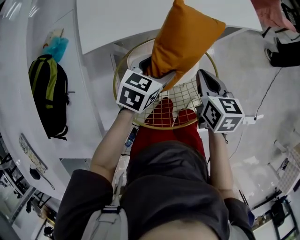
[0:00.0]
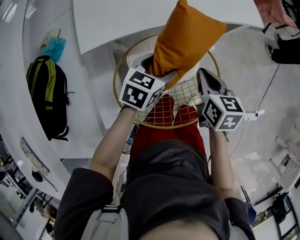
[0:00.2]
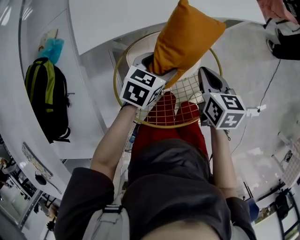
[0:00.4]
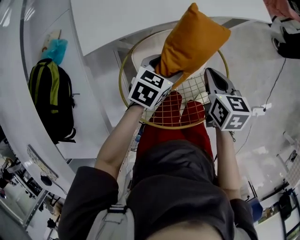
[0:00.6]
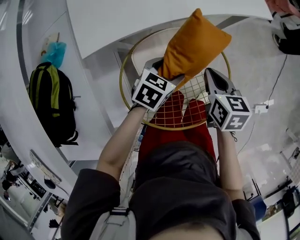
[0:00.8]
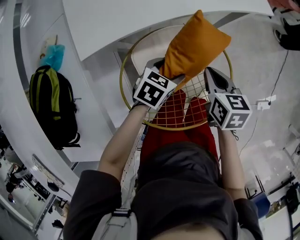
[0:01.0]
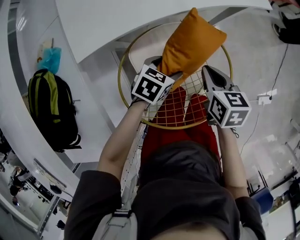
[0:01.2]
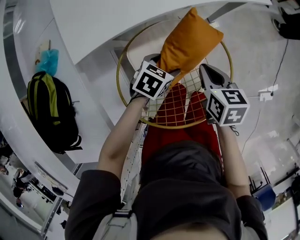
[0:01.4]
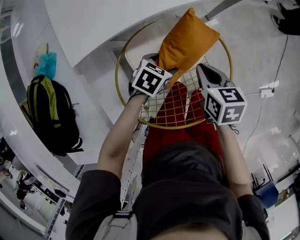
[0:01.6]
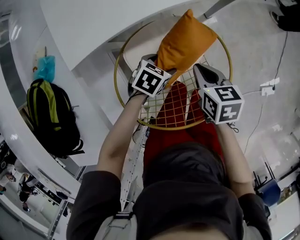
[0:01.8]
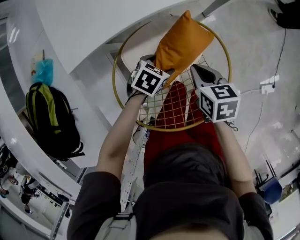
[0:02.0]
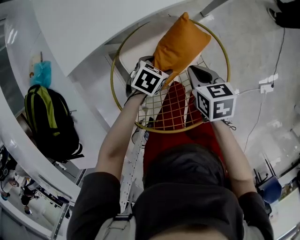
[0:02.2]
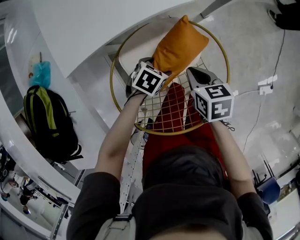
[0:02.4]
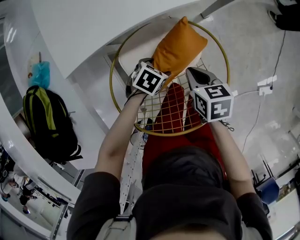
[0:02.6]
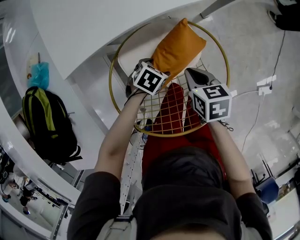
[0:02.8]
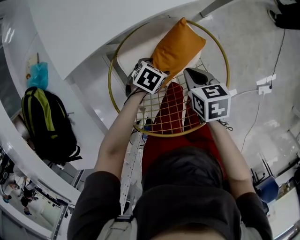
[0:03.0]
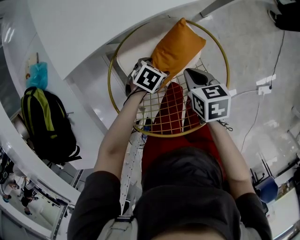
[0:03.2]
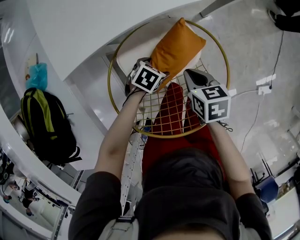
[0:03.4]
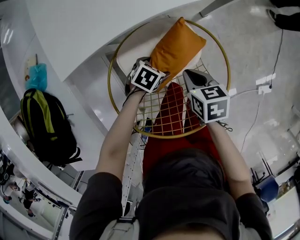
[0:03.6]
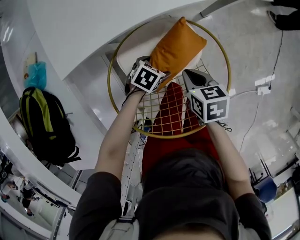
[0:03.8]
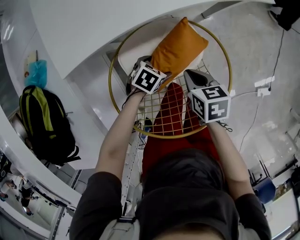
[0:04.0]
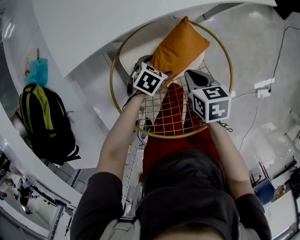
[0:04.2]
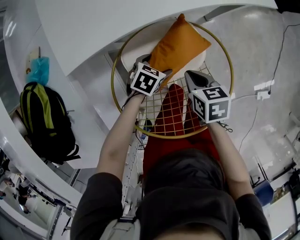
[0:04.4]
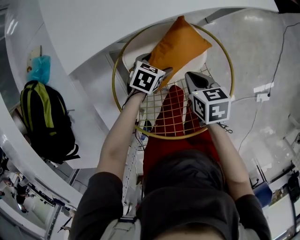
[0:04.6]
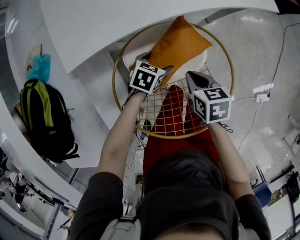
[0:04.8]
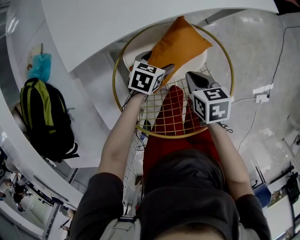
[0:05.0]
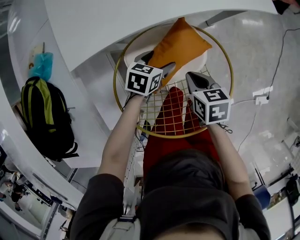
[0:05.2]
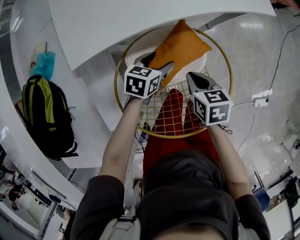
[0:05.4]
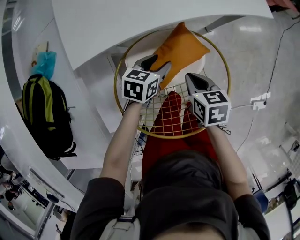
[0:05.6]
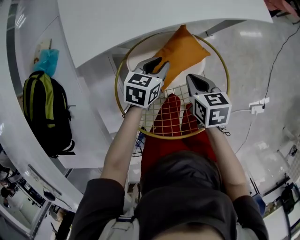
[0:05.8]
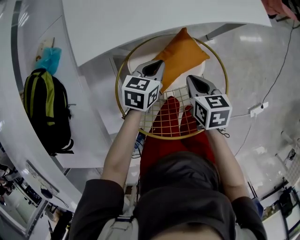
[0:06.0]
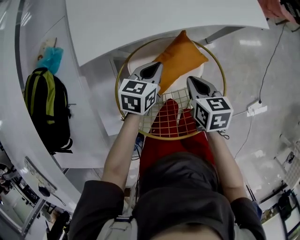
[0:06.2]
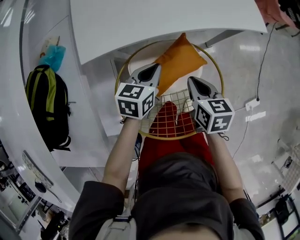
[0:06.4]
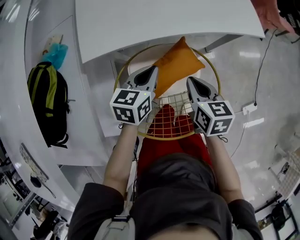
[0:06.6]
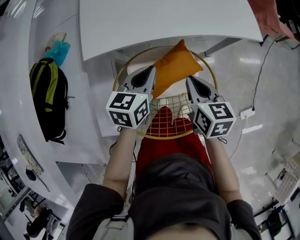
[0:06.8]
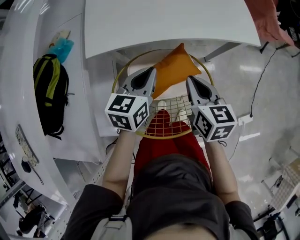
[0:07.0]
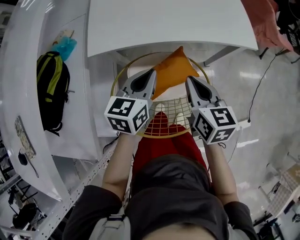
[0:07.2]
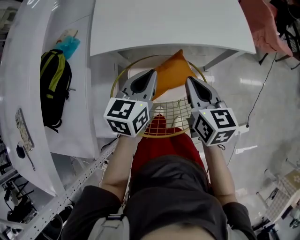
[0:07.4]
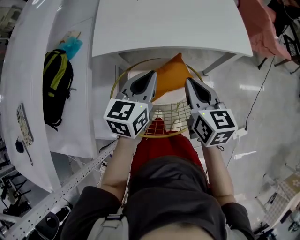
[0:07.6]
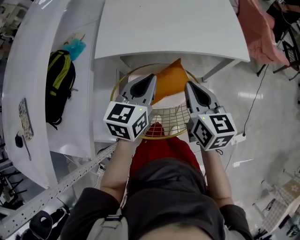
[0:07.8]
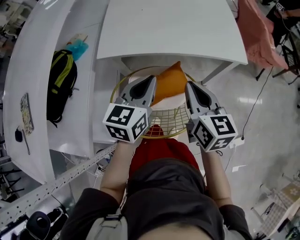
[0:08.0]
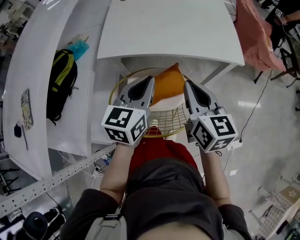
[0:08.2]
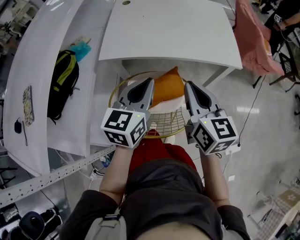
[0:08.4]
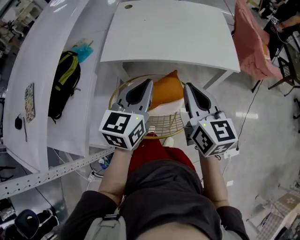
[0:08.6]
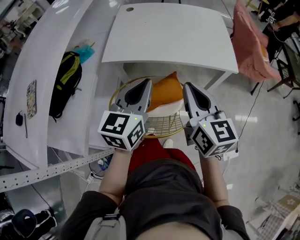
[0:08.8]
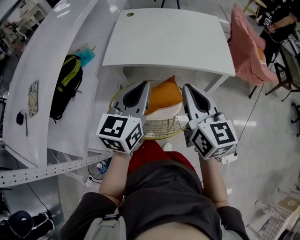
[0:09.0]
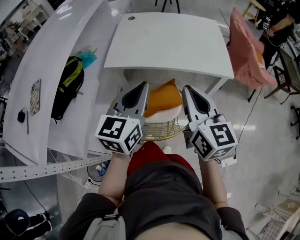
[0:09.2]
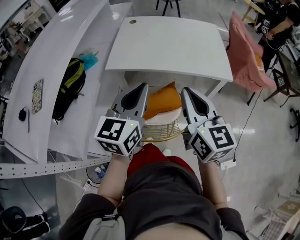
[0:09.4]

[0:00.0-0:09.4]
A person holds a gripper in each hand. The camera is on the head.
0:00.0 to 0:01.6: The left gripper travels downward by approximately 15 cm, and changes its angle by some 30 degrees. The right gripper shifts some 10 cm downward.
0:01.6 to 0:03.2: Both grippers move downward, about 5 cm.
0:03.2 to 0:04.8: The left gripper shifts by about 5 cm.
0:04.8 to 0:06.2: The left gripper travels upward by about 15 cm, changes its angle by roughly 30 degrees, and closes up; the right gripper travels upward by approximately 5 cm.
0:06.2 to 0:07.8: The two grippers go roughly 20 cm upward. The left gripper rotates approximately 30 degrees. The right gripper swivels roughly 30 degrees.
0:07.8 to 0:09.4: The two grippers go roughly 15 cm upward and backward. The right gripper rotates roughly 20 degrees.

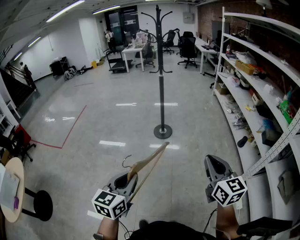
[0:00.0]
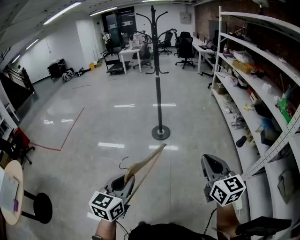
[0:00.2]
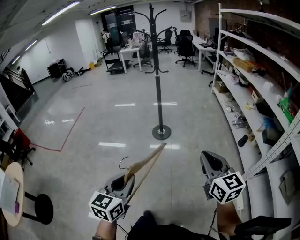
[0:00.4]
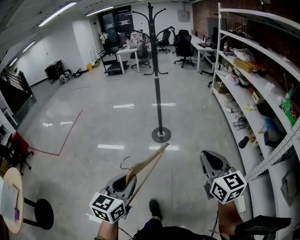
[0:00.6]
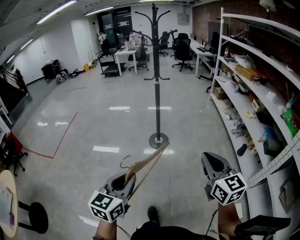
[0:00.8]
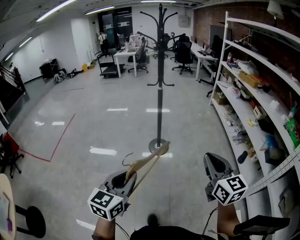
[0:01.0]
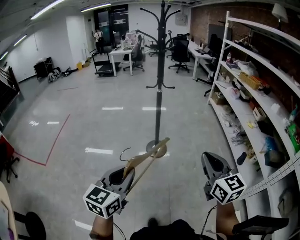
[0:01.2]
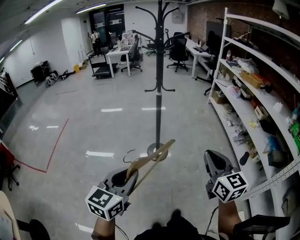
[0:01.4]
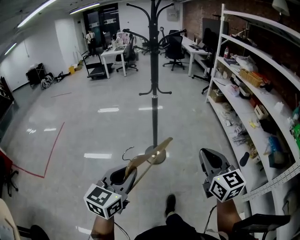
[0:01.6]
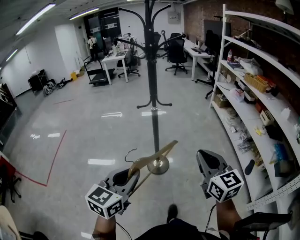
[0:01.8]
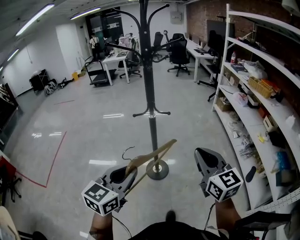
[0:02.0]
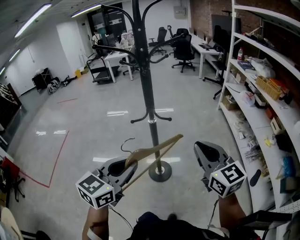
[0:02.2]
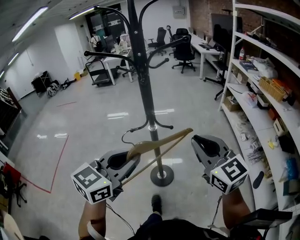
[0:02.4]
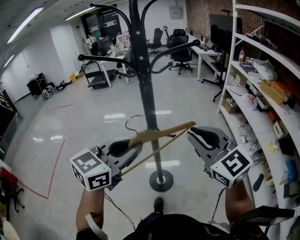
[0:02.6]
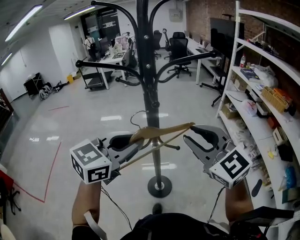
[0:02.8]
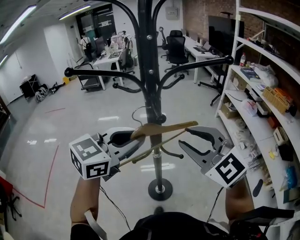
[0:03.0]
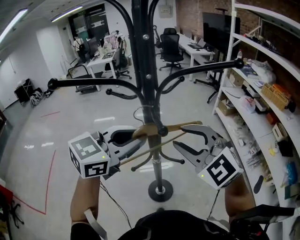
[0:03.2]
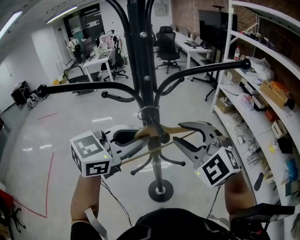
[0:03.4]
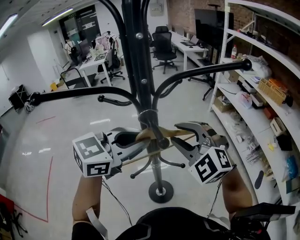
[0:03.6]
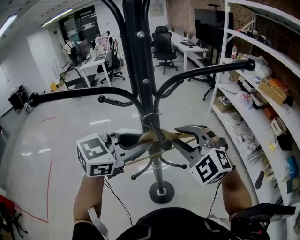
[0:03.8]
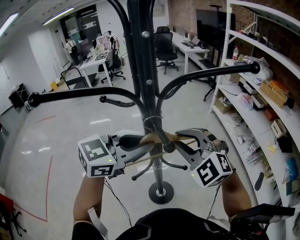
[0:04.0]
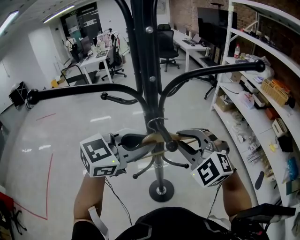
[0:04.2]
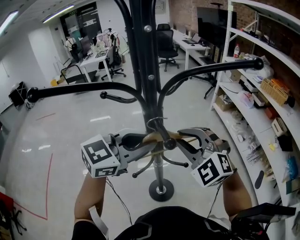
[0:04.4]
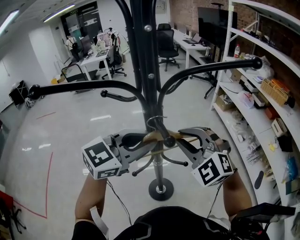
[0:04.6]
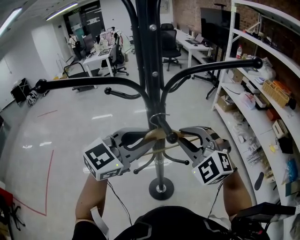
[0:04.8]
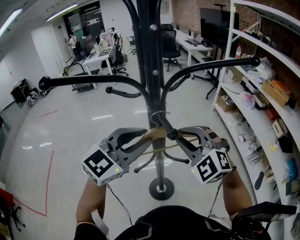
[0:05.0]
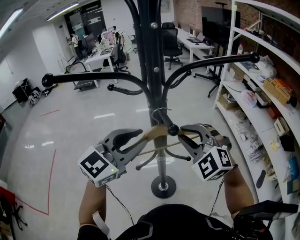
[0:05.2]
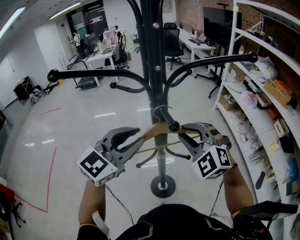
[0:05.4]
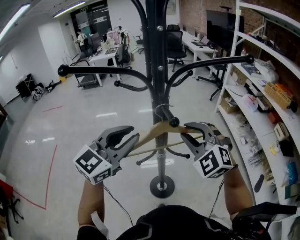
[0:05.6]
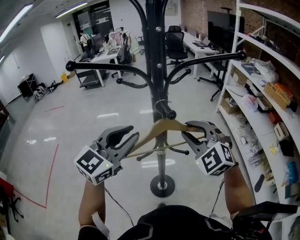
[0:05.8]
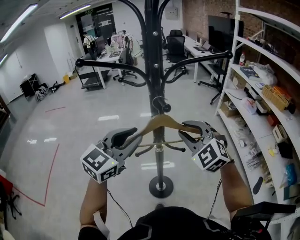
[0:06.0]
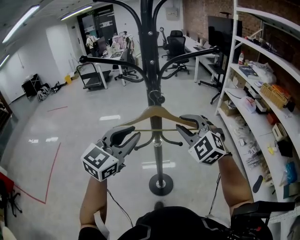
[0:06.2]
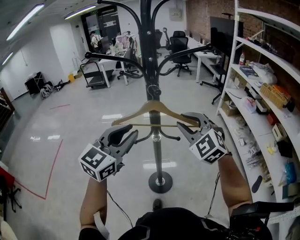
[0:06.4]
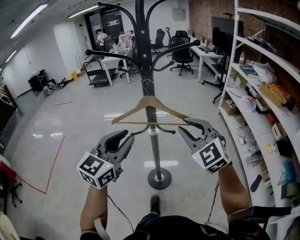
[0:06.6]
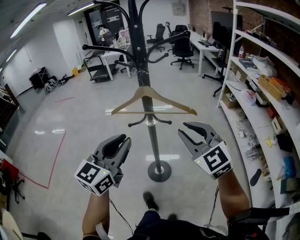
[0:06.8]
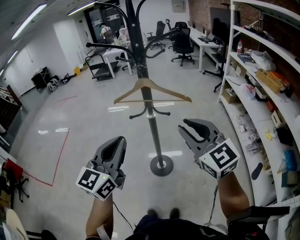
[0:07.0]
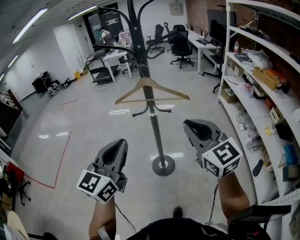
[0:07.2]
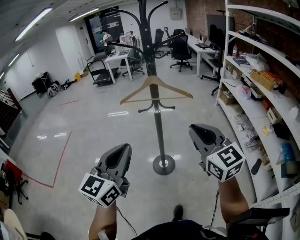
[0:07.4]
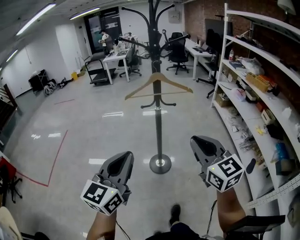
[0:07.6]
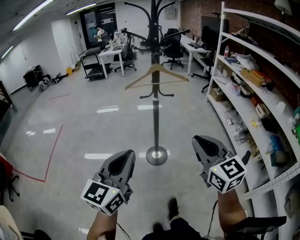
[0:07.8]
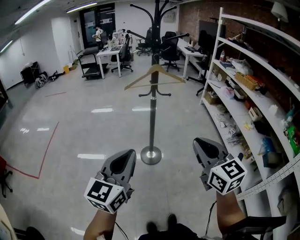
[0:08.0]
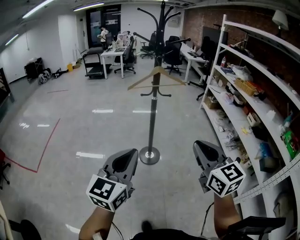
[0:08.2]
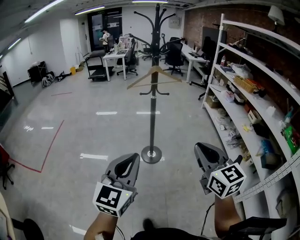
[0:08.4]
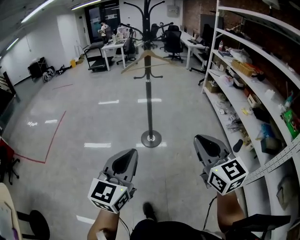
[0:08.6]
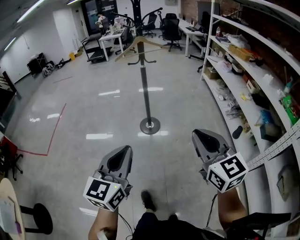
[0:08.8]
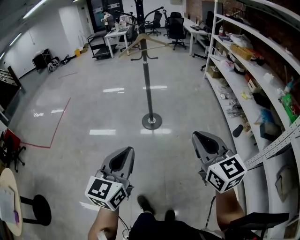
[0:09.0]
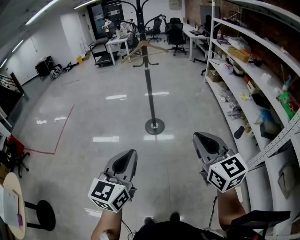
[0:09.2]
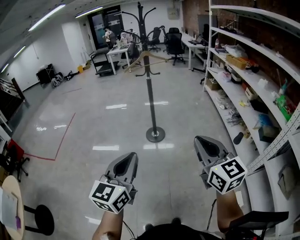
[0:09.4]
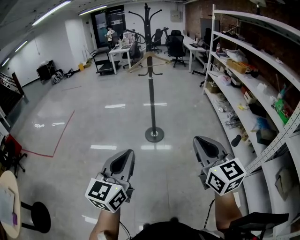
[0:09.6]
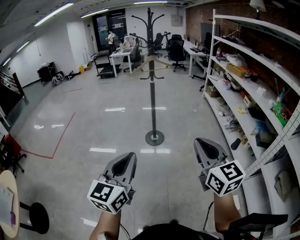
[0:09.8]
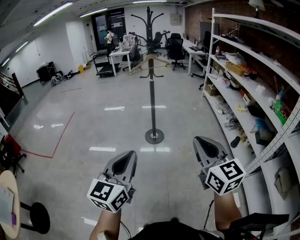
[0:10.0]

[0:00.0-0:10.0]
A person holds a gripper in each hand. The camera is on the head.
0:00.0 to 0:01.4: Both grippers travel together forward, some 35 cm.
0:01.4 to 0:02.8: The two grippers travel together, forward, approximately 50 cm. The right gripper changes its angle by approximately 30 degrees, and opens; the left gripper swivels approximately 20 degrees.
0:02.8 to 0:04.2: The right gripper goes about 15 cm forward, downward and to the left, and swivels roughly 30 degrees. Meanwhile the left gripper shifts roughly 10 cm forward, and swivels some 20 degrees.
0:04.2 to 0:05.8: The left gripper shifts some 10 cm to the left and backward, and changes its angle by about 30 degrees.
0:05.8 to 0:07.2: Both grippers move backward, some 25 cm. The left gripper changes its angle by approximately 30 degrees, and closes. The right gripper swivels approximately 40 degrees.
0:07.2 to 0:08.6: Both grippers move backward, roughly 35 cm.
0:08.6 to 0:10.0: Both grippers move backward, about 20 cm.

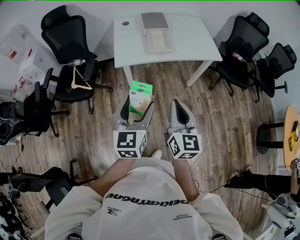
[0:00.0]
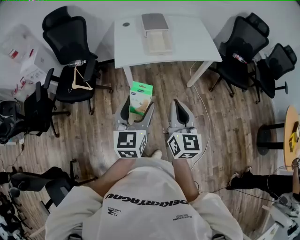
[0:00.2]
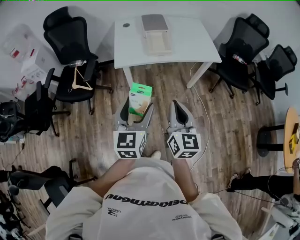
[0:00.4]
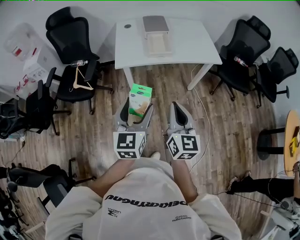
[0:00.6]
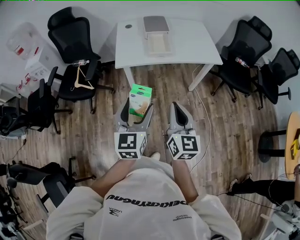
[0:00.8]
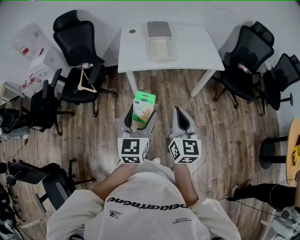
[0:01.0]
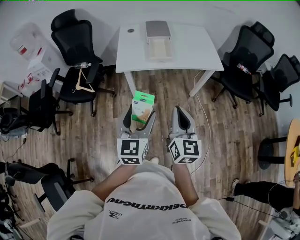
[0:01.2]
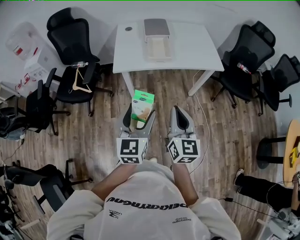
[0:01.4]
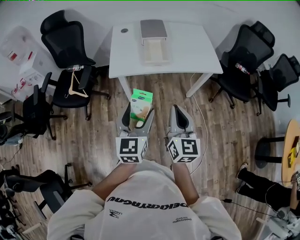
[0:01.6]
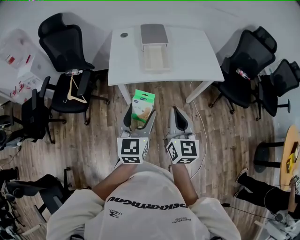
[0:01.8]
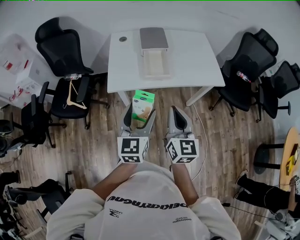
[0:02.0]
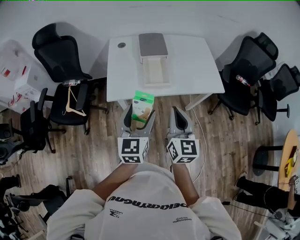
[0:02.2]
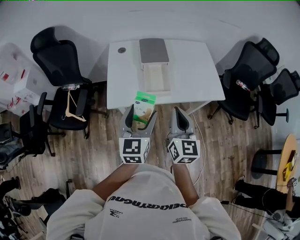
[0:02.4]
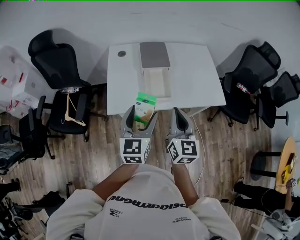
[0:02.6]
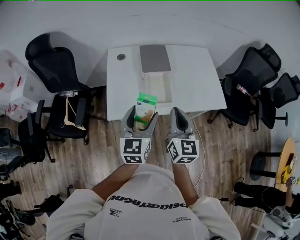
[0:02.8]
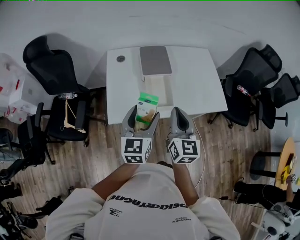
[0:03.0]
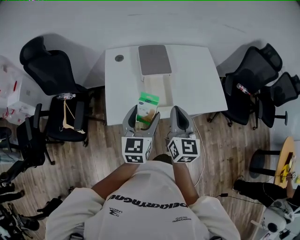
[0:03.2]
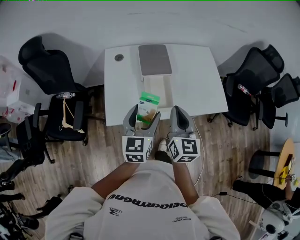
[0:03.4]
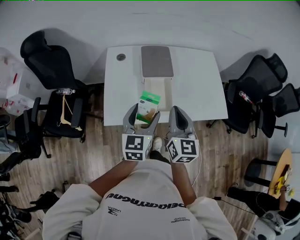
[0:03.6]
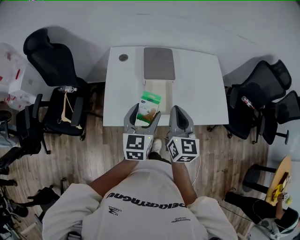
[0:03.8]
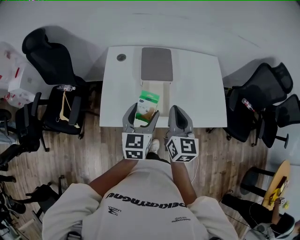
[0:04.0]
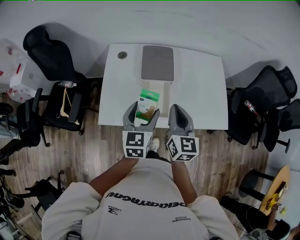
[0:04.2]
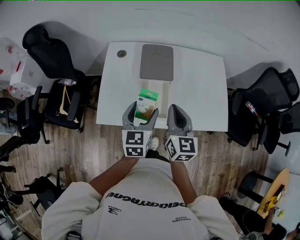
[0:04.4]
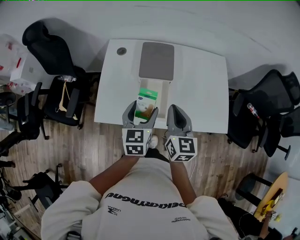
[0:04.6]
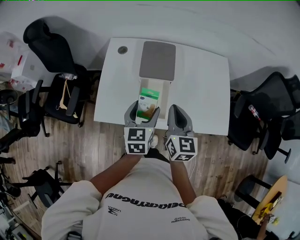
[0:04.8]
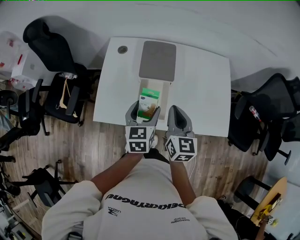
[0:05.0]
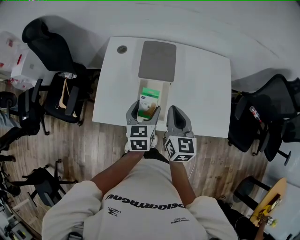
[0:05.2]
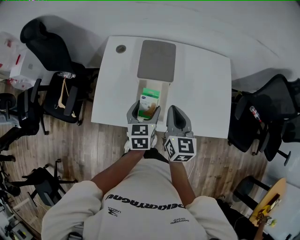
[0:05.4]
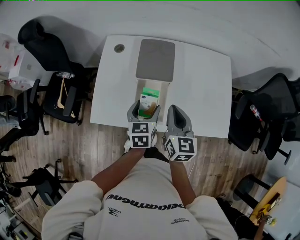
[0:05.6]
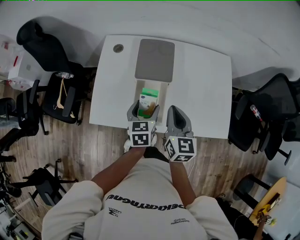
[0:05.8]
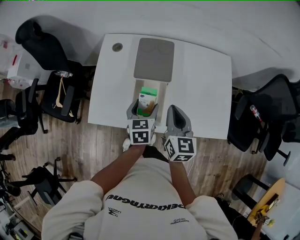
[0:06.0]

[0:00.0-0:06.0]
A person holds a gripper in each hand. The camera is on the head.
0:00.0 to 0:01.6: The grippers both shift forward and to the right by approximately 10 cm.
0:01.6 to 0:03.0: The two grippers go approximately 30 cm forward.
0:03.0 to 0:04.4: The left gripper goes about 15 cm forward, downward and to the right; the right gripper is displaced forward and downward by some 15 cm.
0:04.4 to 0:06.0: The right gripper travels downward by roughly 5 cm. Meanwhile the left gripper shifts some 15 cm downward and forward.
